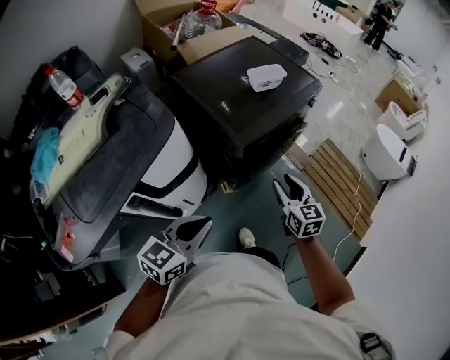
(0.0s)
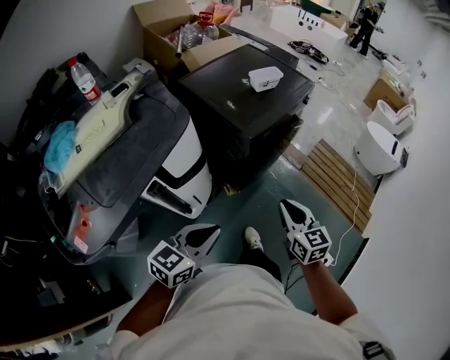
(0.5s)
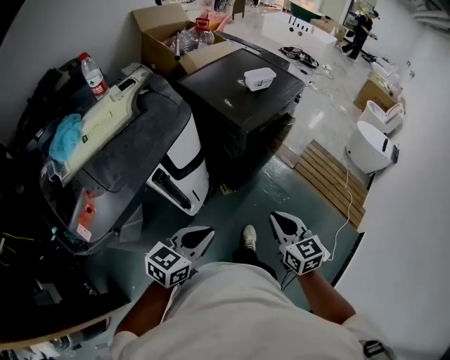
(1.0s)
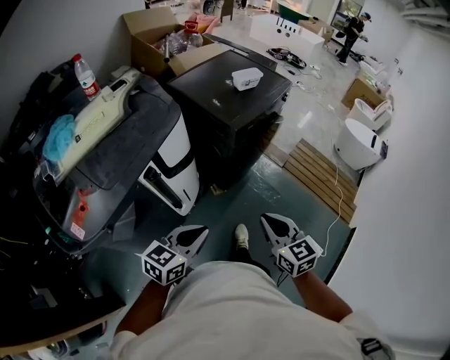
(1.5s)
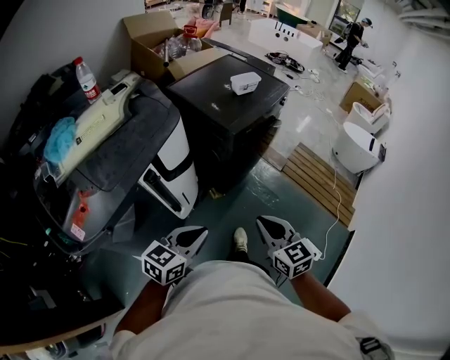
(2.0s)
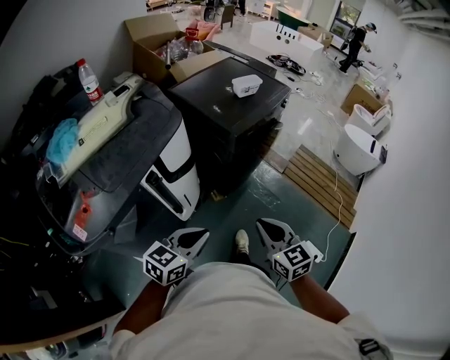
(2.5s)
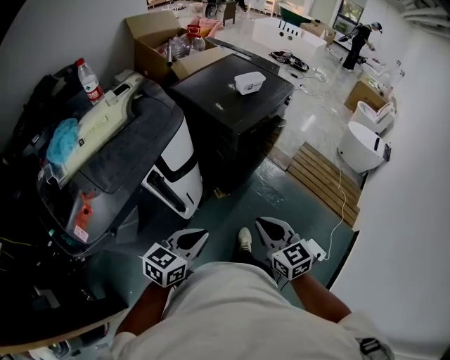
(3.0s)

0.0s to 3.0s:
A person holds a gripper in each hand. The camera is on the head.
0.0s to 1.5s: The right gripper travels backward by some 30 cm, and closes; the left gripper shifts some 20 cm backward.
1.5s to 3.0s: The grippers make only small movements.

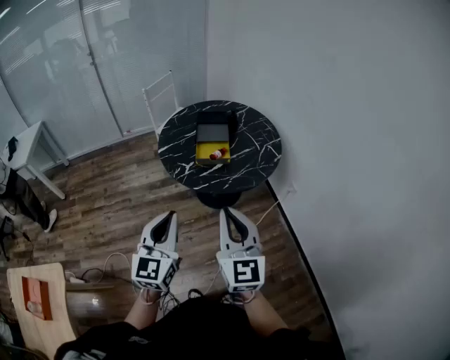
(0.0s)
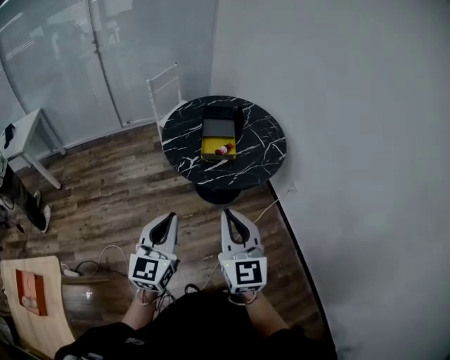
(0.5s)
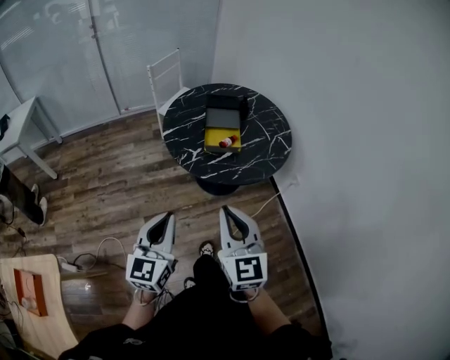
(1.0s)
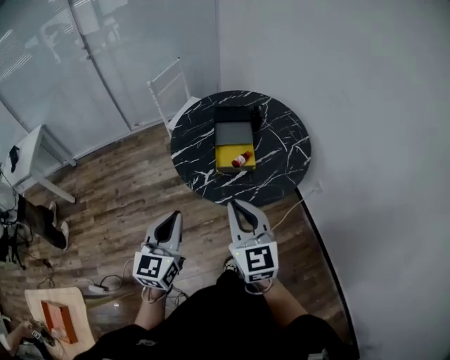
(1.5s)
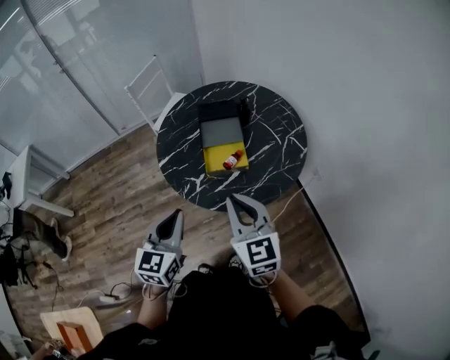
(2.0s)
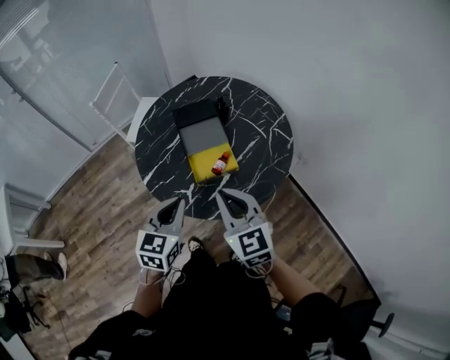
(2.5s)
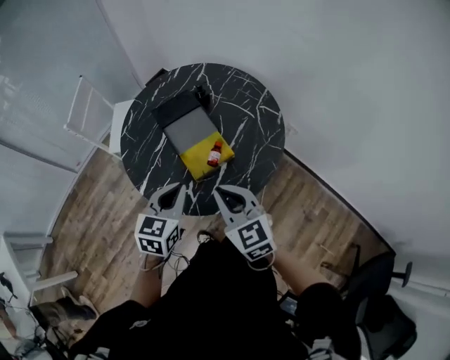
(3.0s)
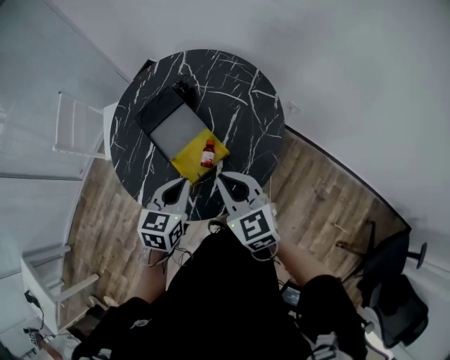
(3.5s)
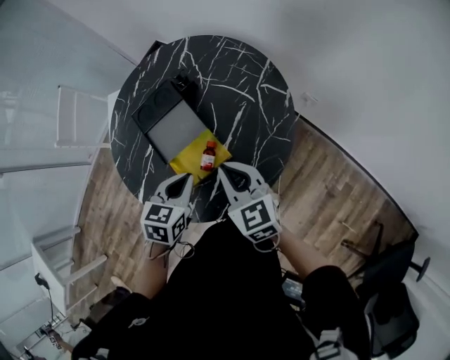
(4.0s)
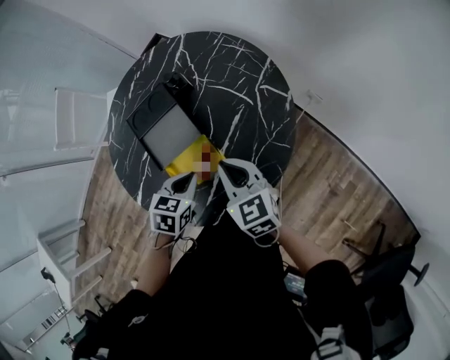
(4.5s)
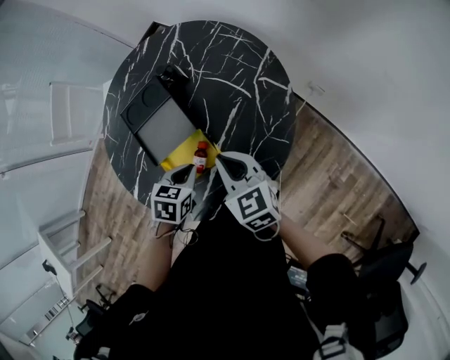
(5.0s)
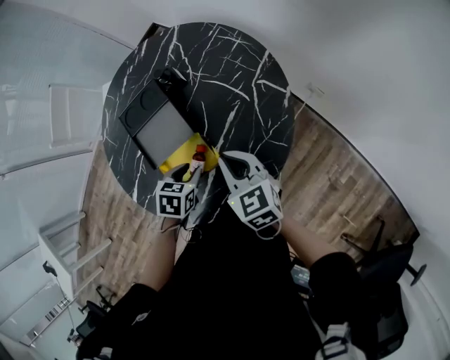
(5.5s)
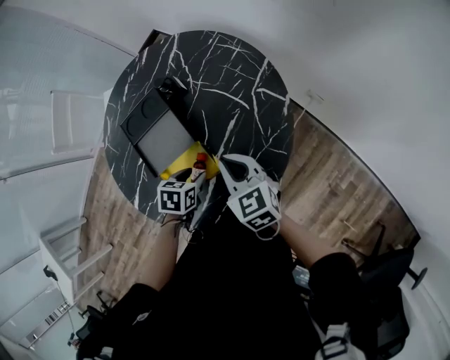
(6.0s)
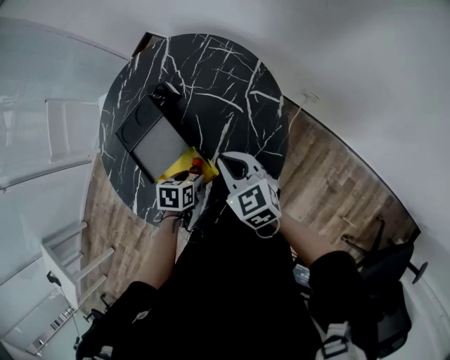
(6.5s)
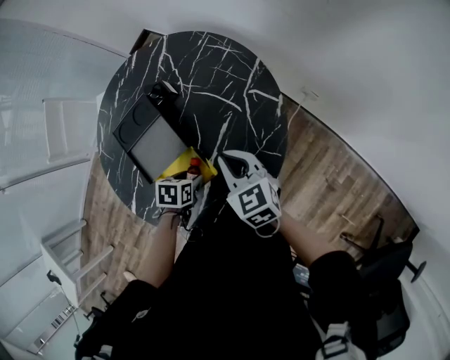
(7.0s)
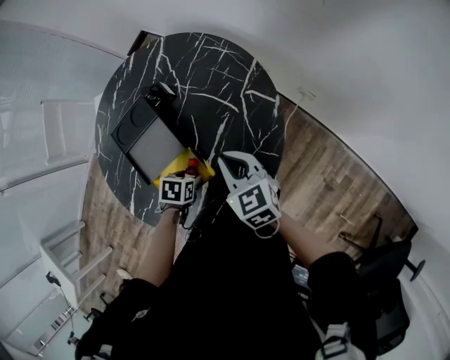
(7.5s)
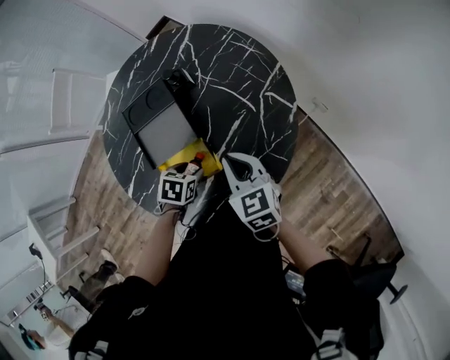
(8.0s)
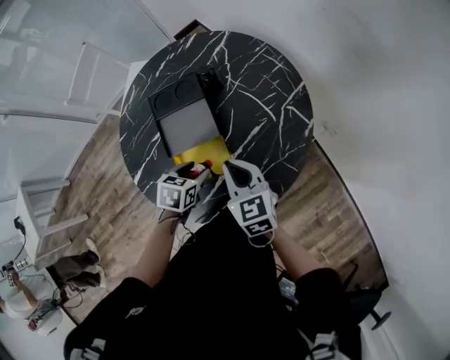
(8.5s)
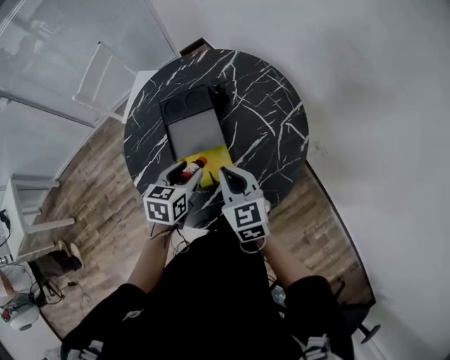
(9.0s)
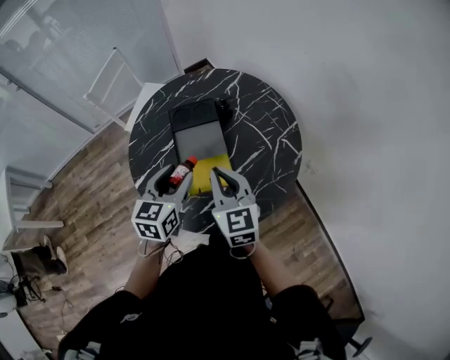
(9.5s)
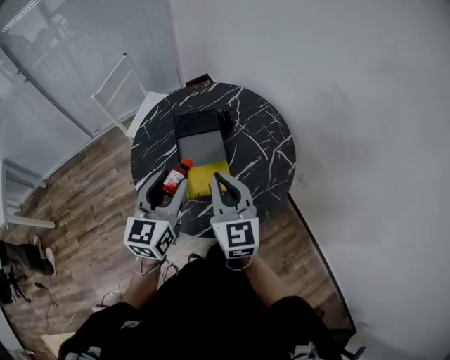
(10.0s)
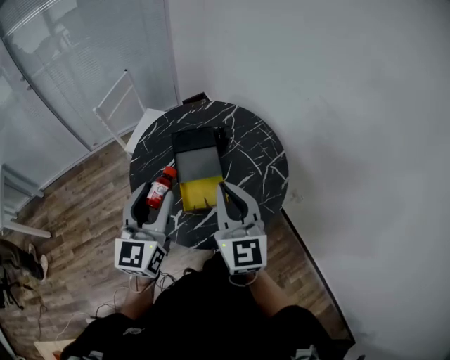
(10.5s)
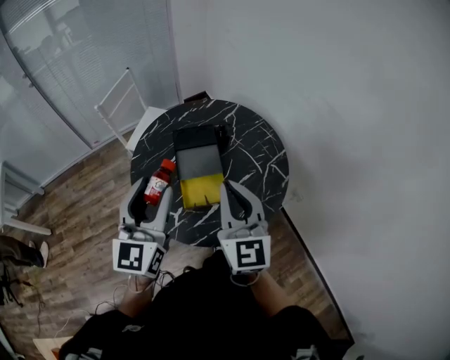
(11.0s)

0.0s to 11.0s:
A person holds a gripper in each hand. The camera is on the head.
0.0s to 2.0s: Both grippers travel together forward, roughly 25 cm.
2.0s to 3.5s: The right gripper moves approximately 20 cm, and rotates roughly 20 degrees. Meanwhile the left gripper shifts by roughly 25 cm, and swivels about 40 degrees.
3.5s to 5.5s: The left gripper travels downward and forward by some 20 cm, tilts its fingers some 30 degrees downward, and opens up. Meanwhile the right gripper shifts roughly 20 cm forward, downward and to the right.
5.5s to 7.5s: The left gripper moves downward, approximately 5 cm, and opens up; the right gripper moves approximately 5 cm.
7.5s to 9.0s: The left gripper heads upward, covering about 20 cm, and angles its fingers upward, by some 40 degrees, while the right gripper ends up some 15 cm from where it was.
9.0s to 11.0s: Both grippers move upward, about 25 cm. The right gripper swivels about 30 degrees, while the left gripper tips its fingers upward by approximately 40 degrees.

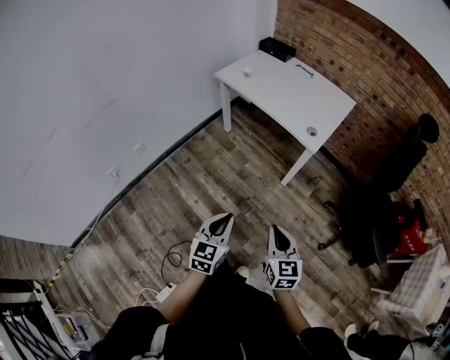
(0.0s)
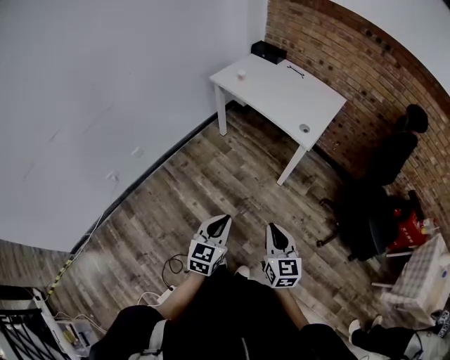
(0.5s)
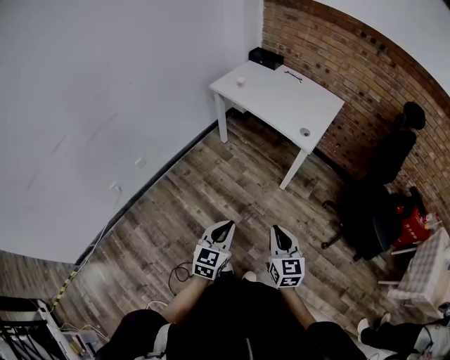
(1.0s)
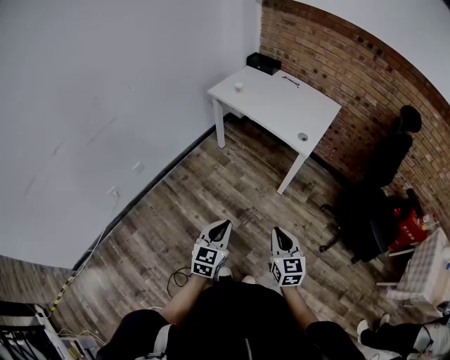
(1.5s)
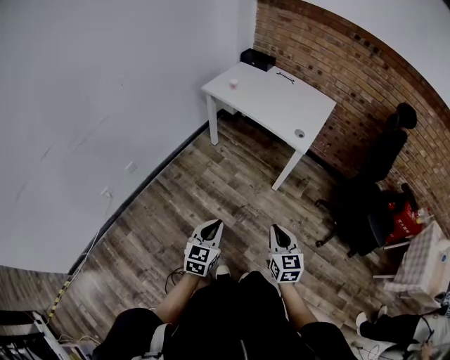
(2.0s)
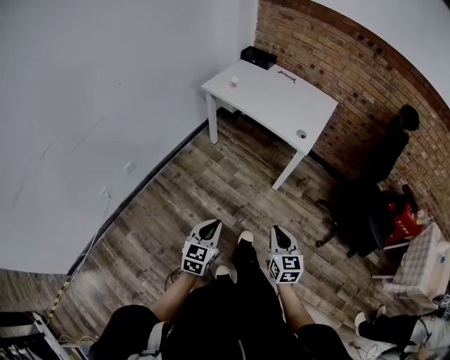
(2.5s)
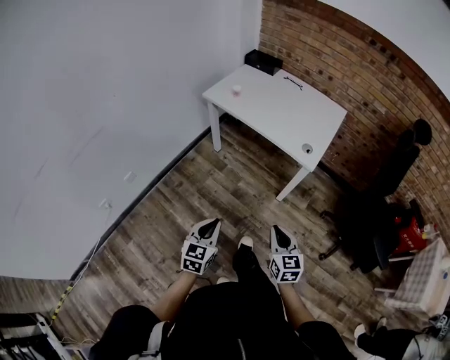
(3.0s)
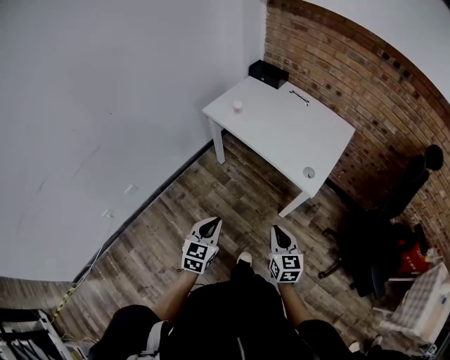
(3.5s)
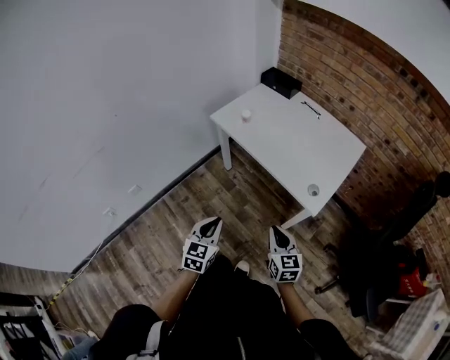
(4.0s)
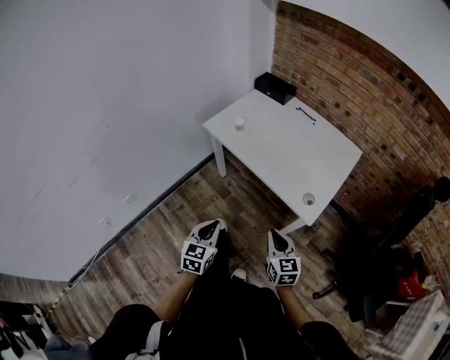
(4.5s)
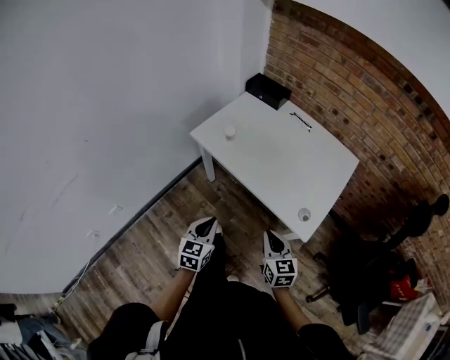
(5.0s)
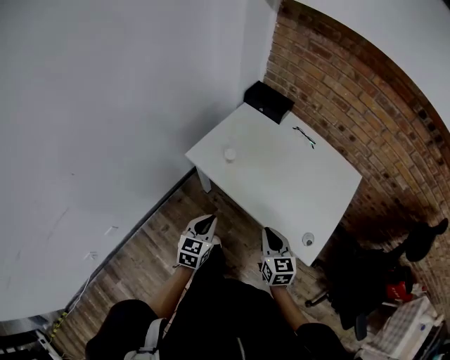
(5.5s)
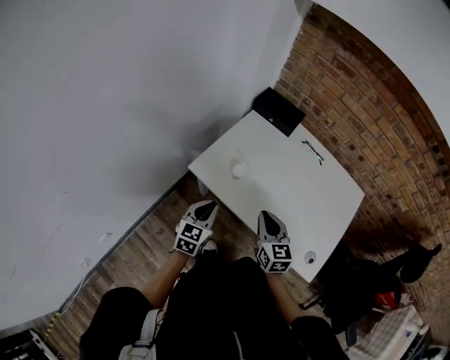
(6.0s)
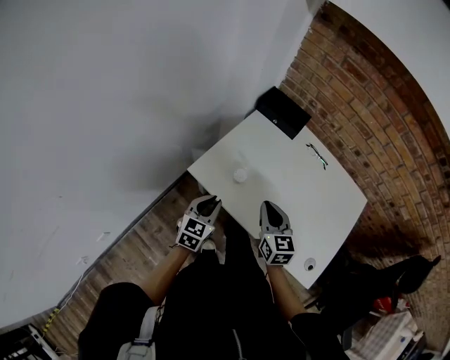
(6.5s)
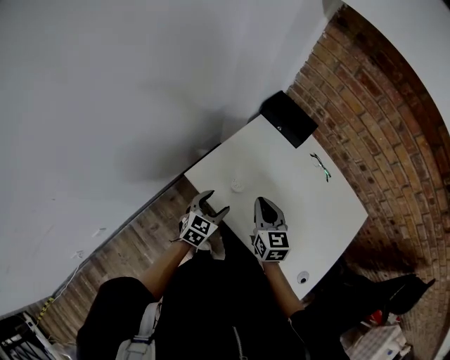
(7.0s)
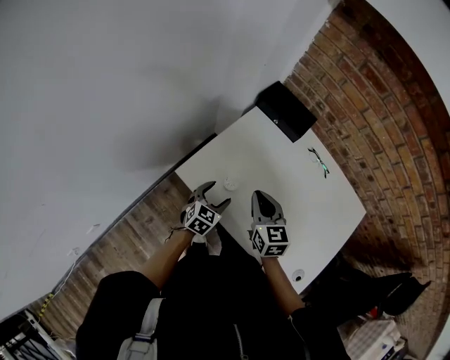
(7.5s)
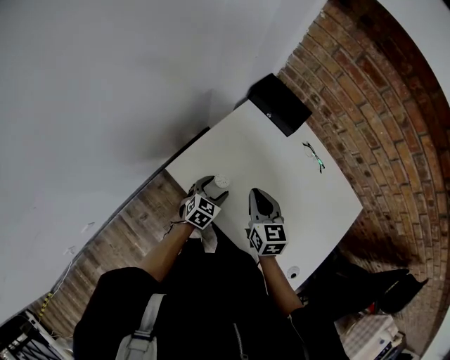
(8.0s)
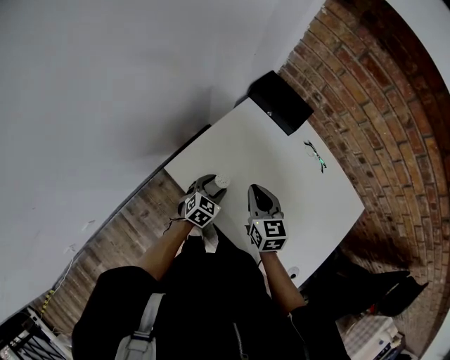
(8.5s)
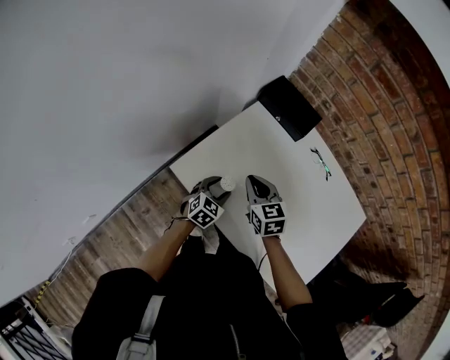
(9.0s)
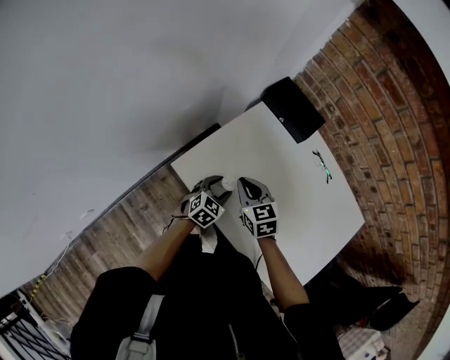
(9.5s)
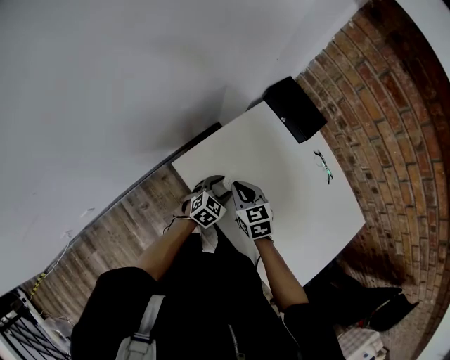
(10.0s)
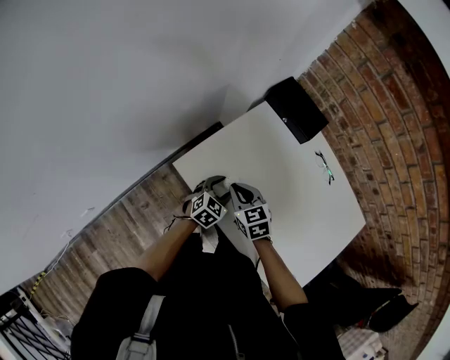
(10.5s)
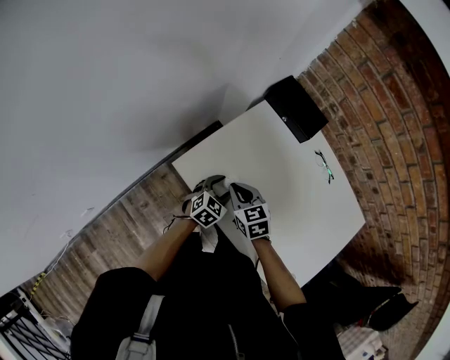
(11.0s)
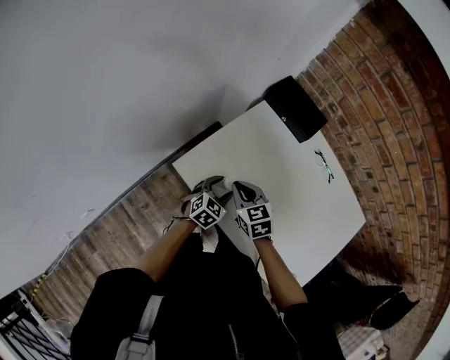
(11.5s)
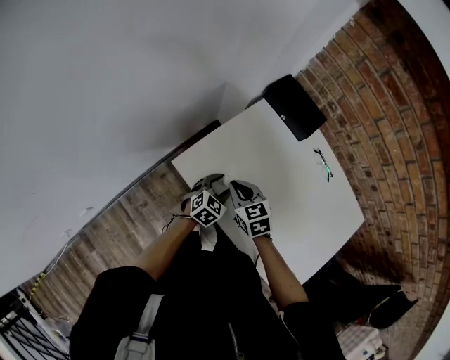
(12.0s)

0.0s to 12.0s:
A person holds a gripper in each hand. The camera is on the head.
0.0s to 2.0s: The left gripper is displaced to the left by about 5 cm.
2.0s to 4.0s: Both grippers travel together forward, roughly 30 cm.
4.0s to 6.0s: The two grippers travel together, forward, roughly 40 cm.
6.0s to 8.0s: The left gripper is displaced forward, downward and to the right by roughly 25 cm, and opens its fingers. The right gripper heads forward, covering about 15 cm.
8.0s to 10.0s: The right gripper travels to the left and downward by approximately 10 cm, and swivels approximately 30 degrees.
10.0s to 12.0s: The grippers make only small movements.

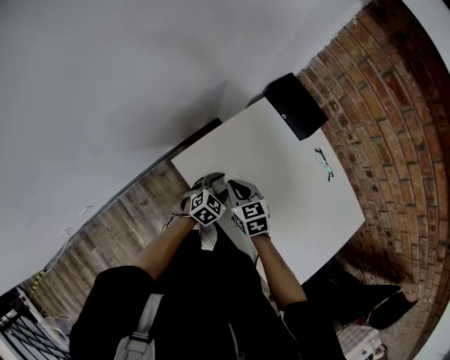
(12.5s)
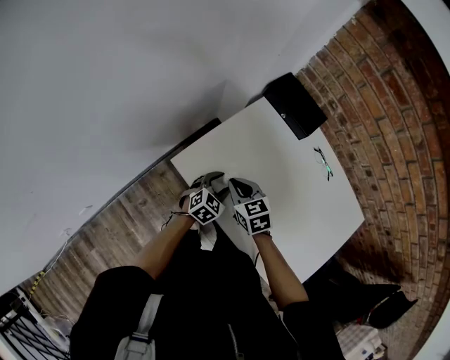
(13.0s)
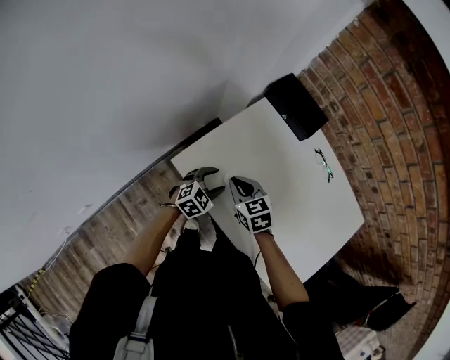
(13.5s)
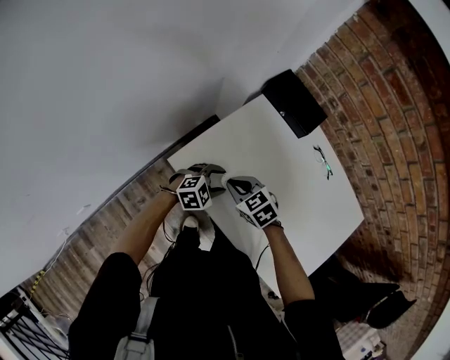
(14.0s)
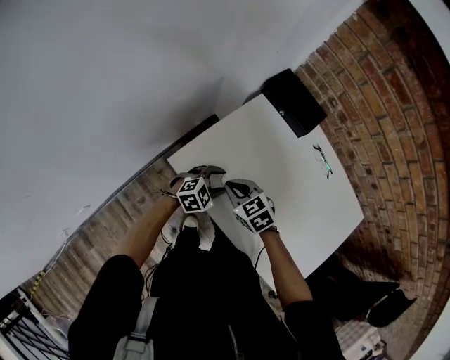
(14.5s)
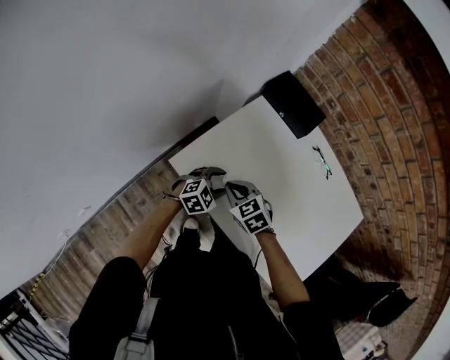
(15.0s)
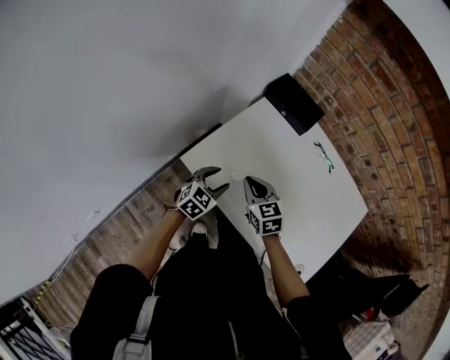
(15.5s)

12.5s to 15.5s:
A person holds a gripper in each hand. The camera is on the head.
12.5s to 14.0s: The left gripper swivels roughly 30 degrees.
14.0s to 15.5s: The right gripper moves approximately 5 cm, and changes its angle by roughly 30 degrees; the left gripper moves about 5 cm, and swivels some 30 degrees.
